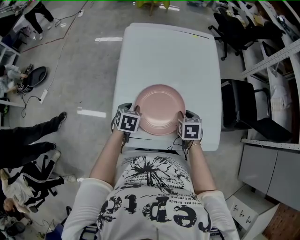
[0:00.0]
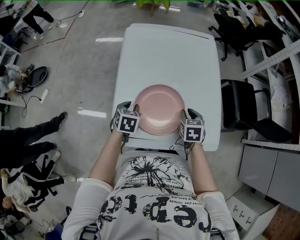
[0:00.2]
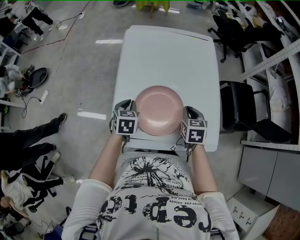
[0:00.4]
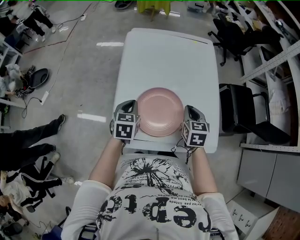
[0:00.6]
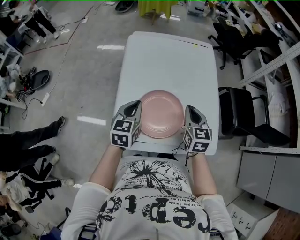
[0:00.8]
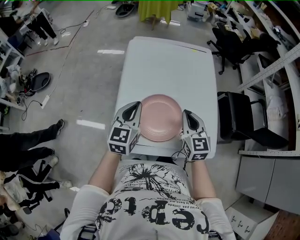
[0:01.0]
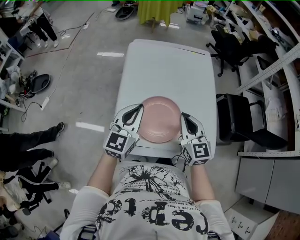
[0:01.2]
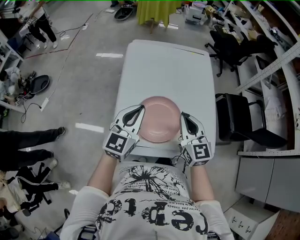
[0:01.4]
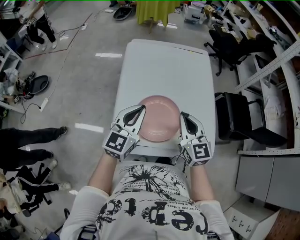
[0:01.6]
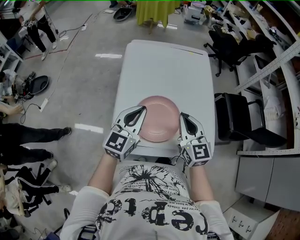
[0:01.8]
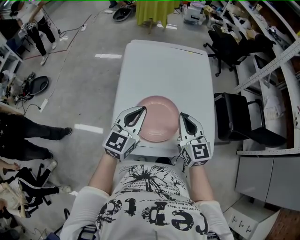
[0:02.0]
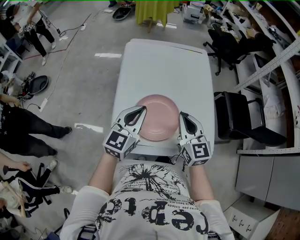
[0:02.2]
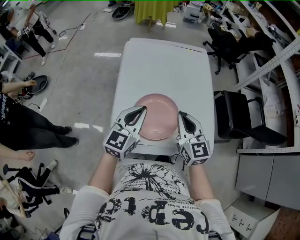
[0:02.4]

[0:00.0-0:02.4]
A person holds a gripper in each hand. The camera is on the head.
0:00.0 to 0:01.2: The grippers both shift upward by approximately 20 cm. The left gripper tips its fingers upward by some 50 degrees, and closes its fingers. Meanwhile the right gripper points its fingers about 40 degrees further upward, and closes.
0:01.2 to 0:02.4: The grippers move only a little.

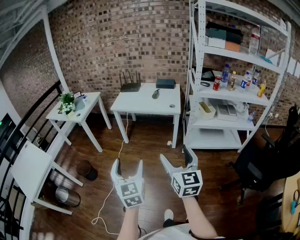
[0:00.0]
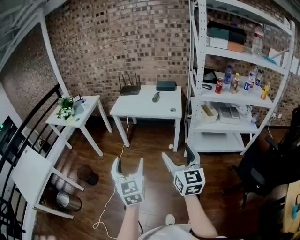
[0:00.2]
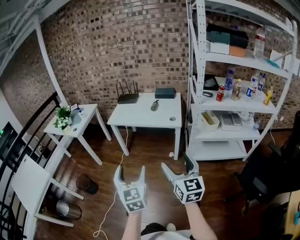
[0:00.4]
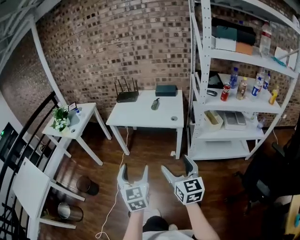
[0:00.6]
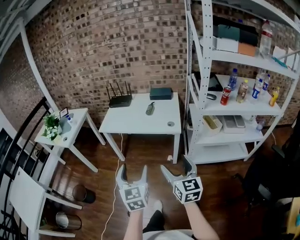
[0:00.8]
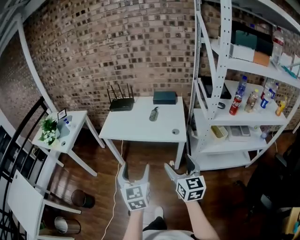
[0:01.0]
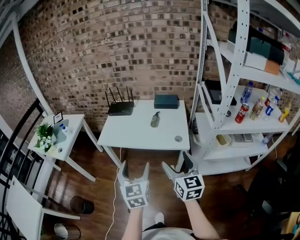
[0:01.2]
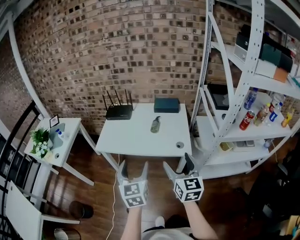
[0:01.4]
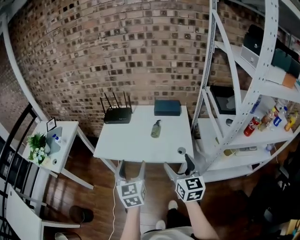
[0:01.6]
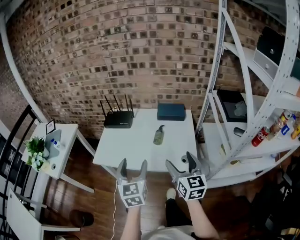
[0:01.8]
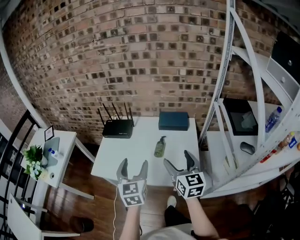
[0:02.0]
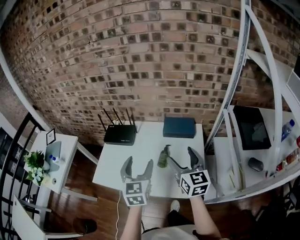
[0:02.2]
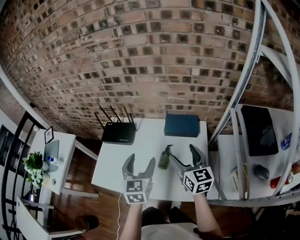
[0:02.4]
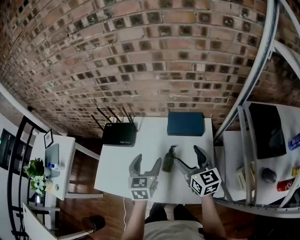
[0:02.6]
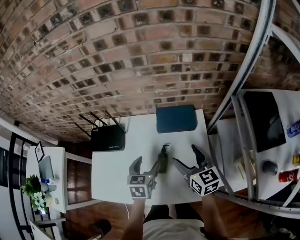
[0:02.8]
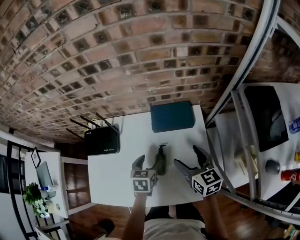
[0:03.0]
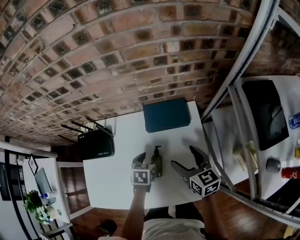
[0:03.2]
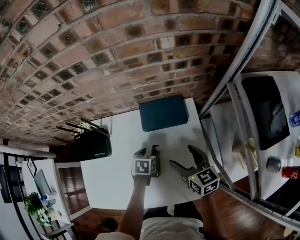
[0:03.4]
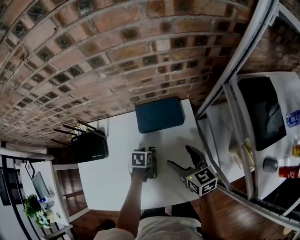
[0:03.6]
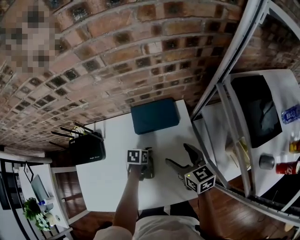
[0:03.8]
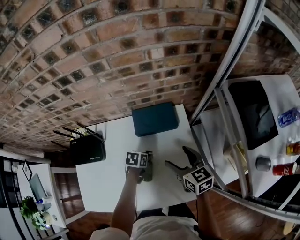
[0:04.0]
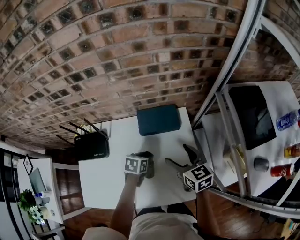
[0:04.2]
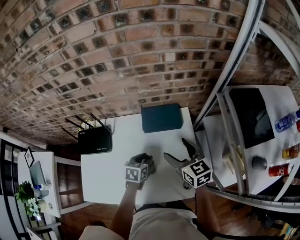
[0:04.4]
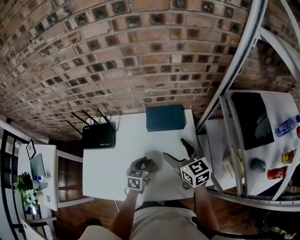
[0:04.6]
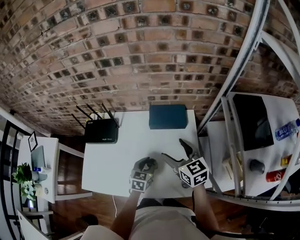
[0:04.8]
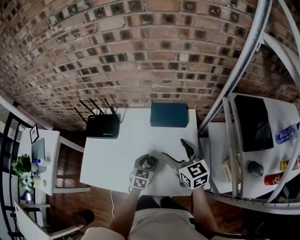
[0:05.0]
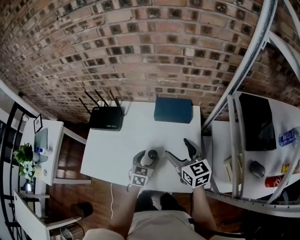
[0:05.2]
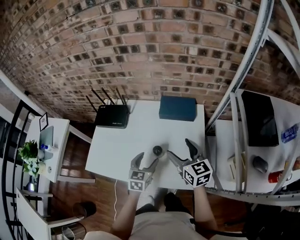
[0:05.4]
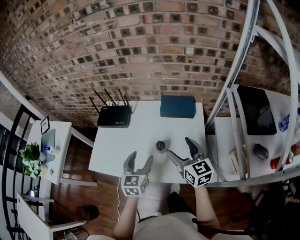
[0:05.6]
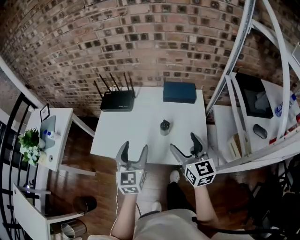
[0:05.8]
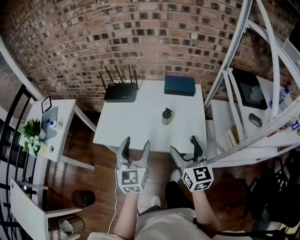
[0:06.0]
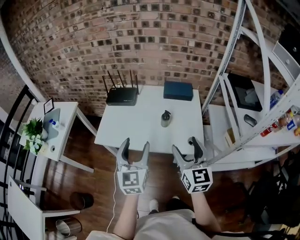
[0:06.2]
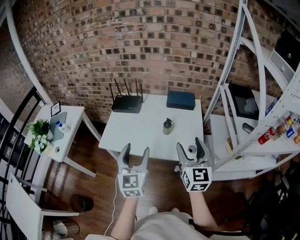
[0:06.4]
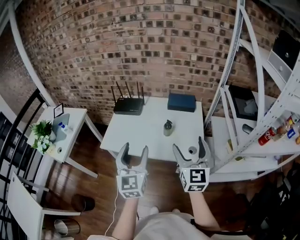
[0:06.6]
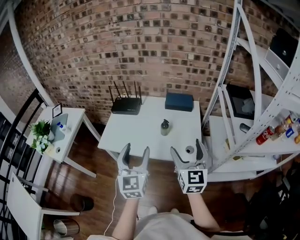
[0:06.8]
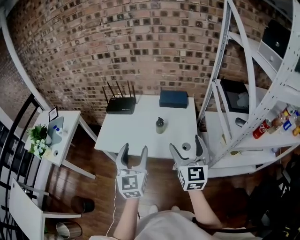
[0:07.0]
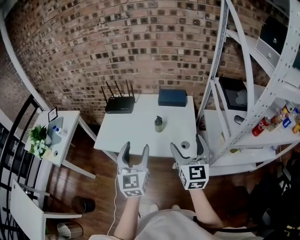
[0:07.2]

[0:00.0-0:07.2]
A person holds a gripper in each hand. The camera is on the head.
0:00.0 to 0:01.4: The pair of grippers is taken forward, about 50 cm.
0:01.4 to 0:02.8: Both grippers are carried forward, about 50 cm. The left gripper turns by approximately 30 degrees.
0:02.8 to 0:04.4: The right gripper goes downward and returns, approximately 10 cm each way; the left gripper shifts approximately 10 cm downward, changes its angle by approximately 20 degrees, and closes up.
0:04.4 to 0:05.8: The right gripper travels backward by about 20 cm; the left gripper shifts about 30 cm backward, upward and to the left, angles its fingers upward, by approximately 30 degrees, and opens.
0:05.8 to 0:07.2: Both grippers move backward and upward, some 15 cm.

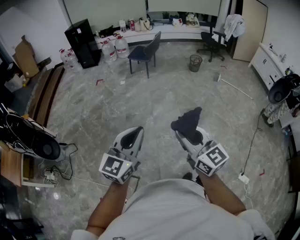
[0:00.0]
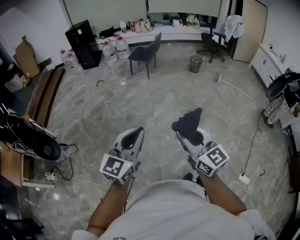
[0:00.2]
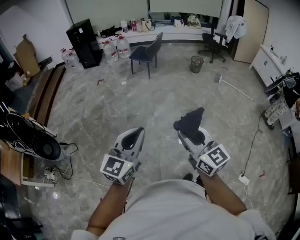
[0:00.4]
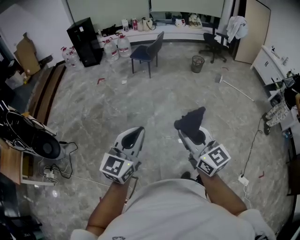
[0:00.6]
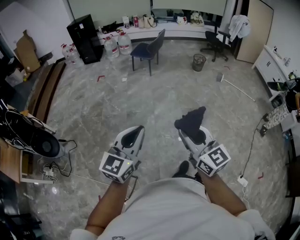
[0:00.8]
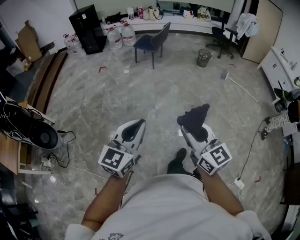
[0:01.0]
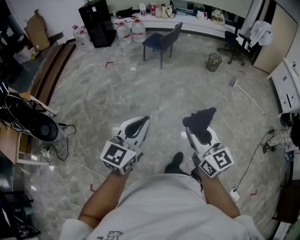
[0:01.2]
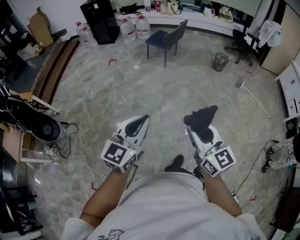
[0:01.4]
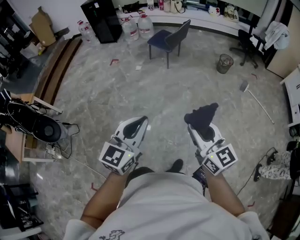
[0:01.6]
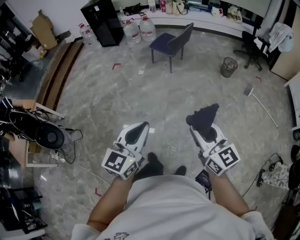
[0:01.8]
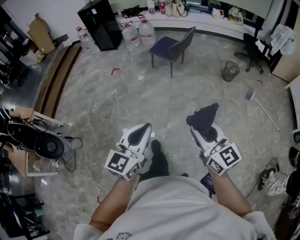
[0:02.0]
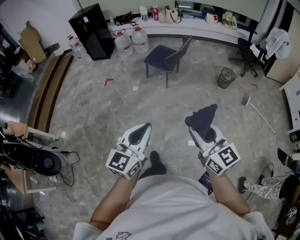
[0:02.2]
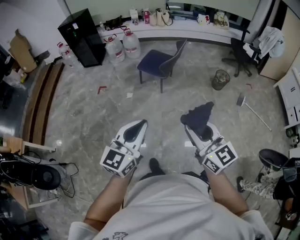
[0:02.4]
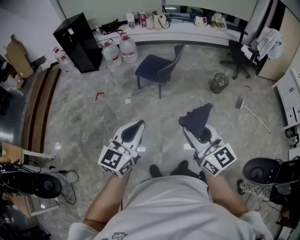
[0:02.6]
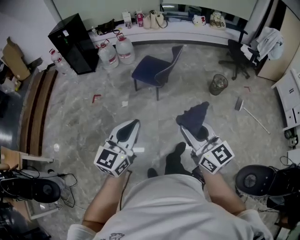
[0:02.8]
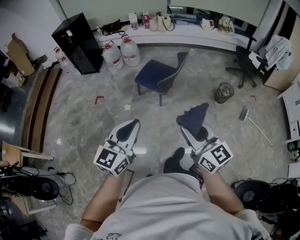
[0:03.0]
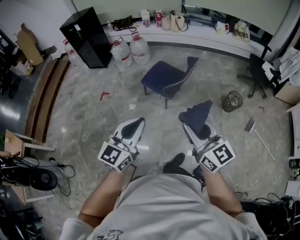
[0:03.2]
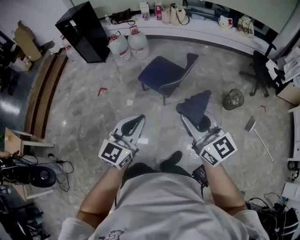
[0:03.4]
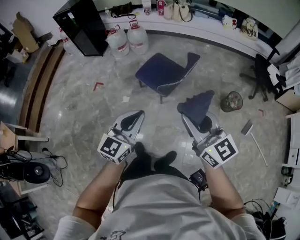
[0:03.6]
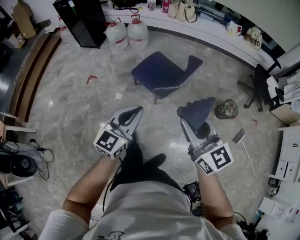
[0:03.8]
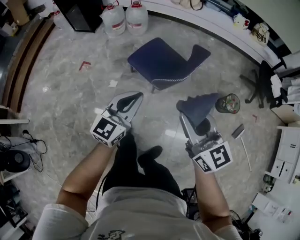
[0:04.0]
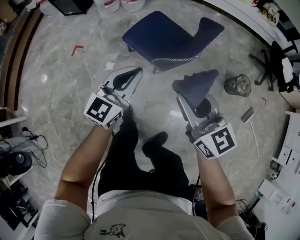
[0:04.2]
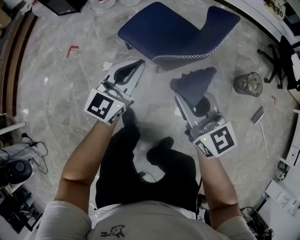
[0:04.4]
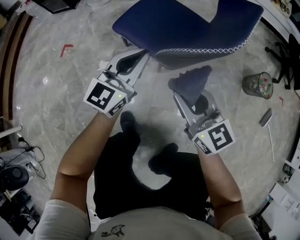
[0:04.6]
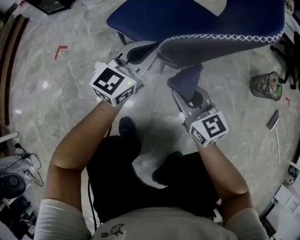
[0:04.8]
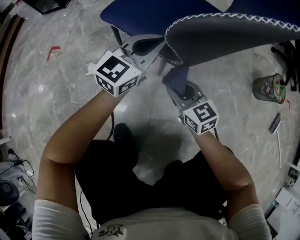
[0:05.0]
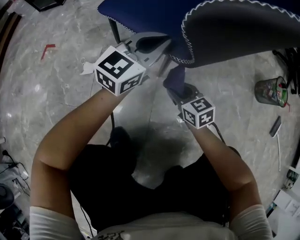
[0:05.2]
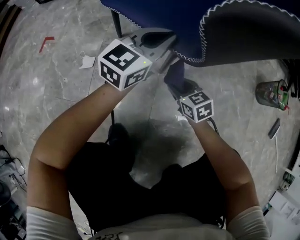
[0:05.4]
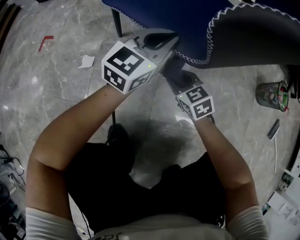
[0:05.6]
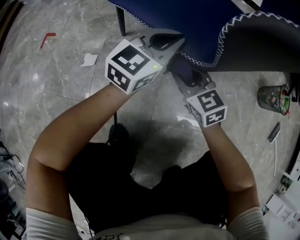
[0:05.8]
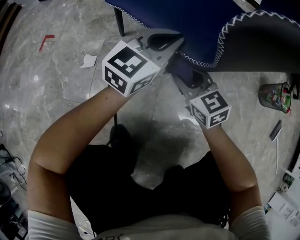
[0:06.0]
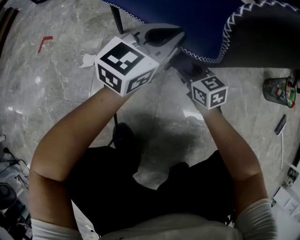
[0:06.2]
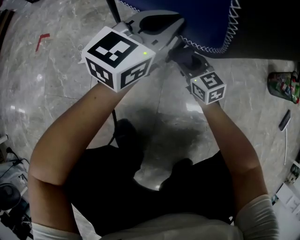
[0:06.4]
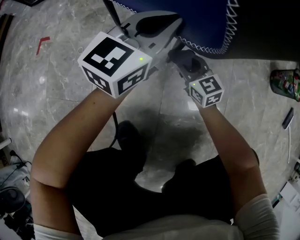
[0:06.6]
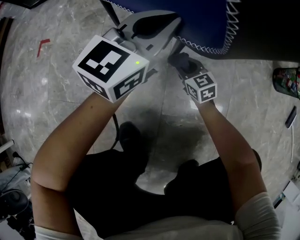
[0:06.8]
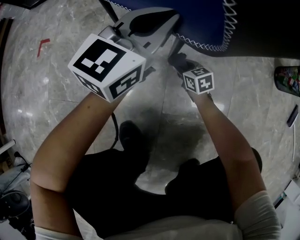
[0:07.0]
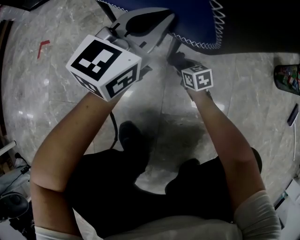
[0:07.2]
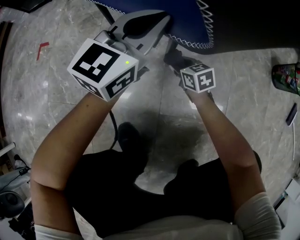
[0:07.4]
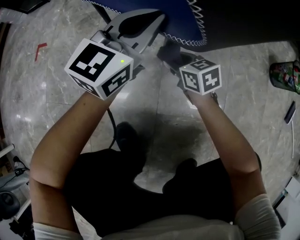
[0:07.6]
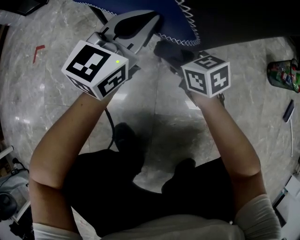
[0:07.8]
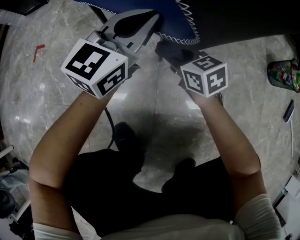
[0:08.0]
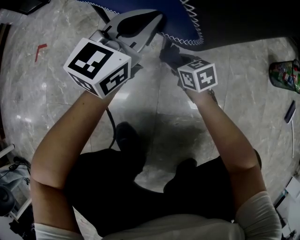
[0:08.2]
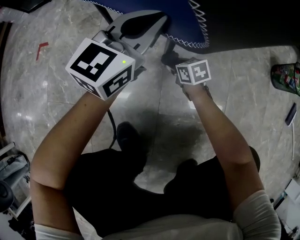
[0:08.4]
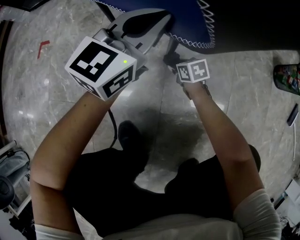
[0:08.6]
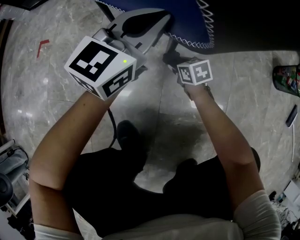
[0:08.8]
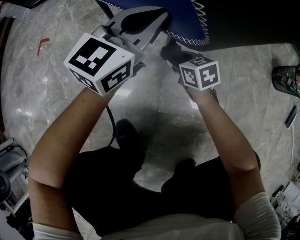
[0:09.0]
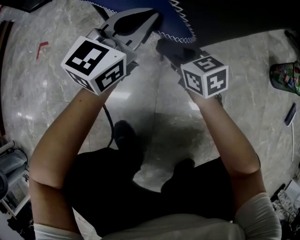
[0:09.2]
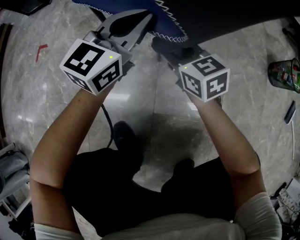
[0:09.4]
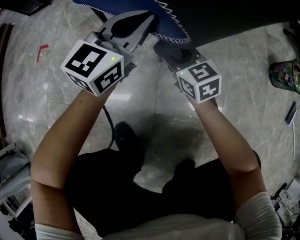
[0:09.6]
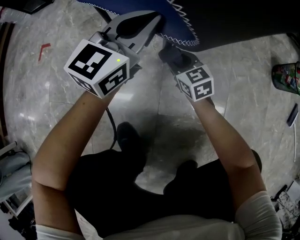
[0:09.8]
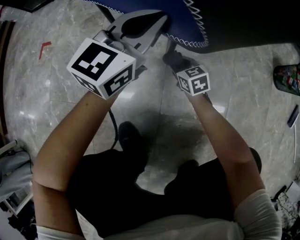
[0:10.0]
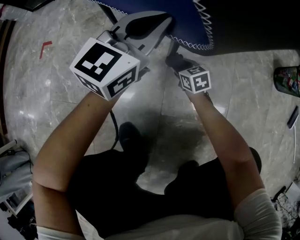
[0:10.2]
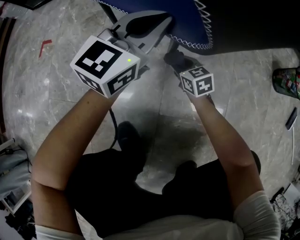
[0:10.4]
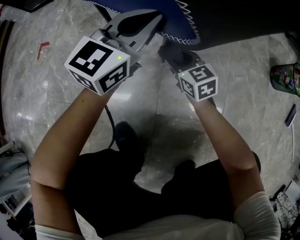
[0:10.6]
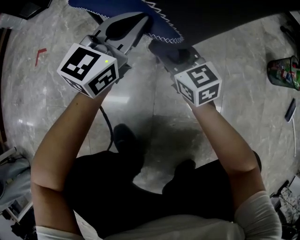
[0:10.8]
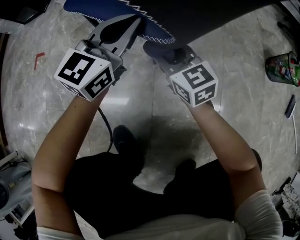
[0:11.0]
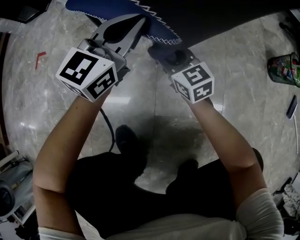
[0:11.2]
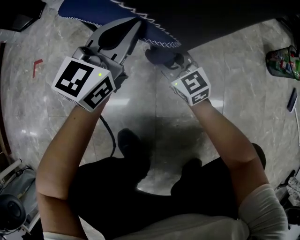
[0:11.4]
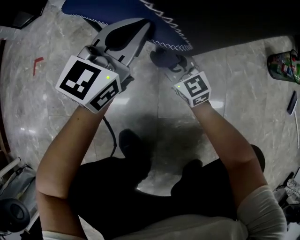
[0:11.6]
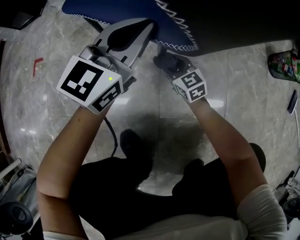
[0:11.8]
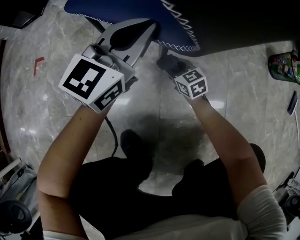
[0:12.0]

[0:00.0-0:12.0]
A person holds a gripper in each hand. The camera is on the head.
0:00.0 to 0:01.6: The two grippers go about 35 cm forward.
0:01.6 to 0:03.0: The two grippers travel together, forward, approximately 60 cm.
0:03.0 to 0:04.4: The two grippers travel together, forward, some 40 cm. Both grippers move downward, some 40 cm.
0:04.4 to 0:06.0: The two grippers go approximately 50 cm downward. The right gripper rotates approximately 20 degrees.
0:06.0 to 0:07.6: The right gripper goes approximately 10 cm downward, and changes its angle by roughly 20 degrees.
0:07.6 to 0:09.0: The right gripper swings up and down, some 20 cm each way, with 2 reversals.
0:09.0 to 0:10.4: The right gripper moves up and down over approximately 20 cm, changing direction 2 times.
0:10.4 to 0:12.0: The right gripper reaches some 15 cm upward, then returns.

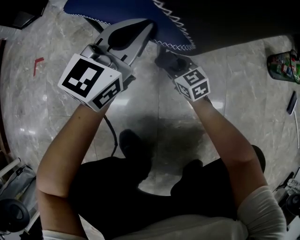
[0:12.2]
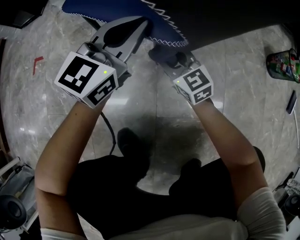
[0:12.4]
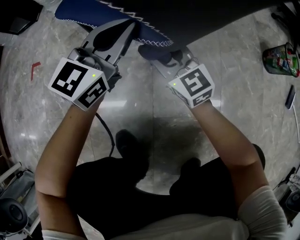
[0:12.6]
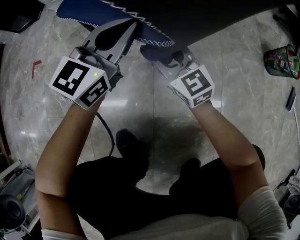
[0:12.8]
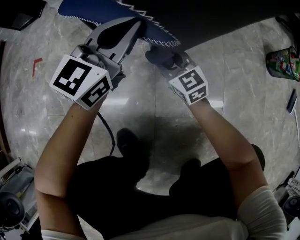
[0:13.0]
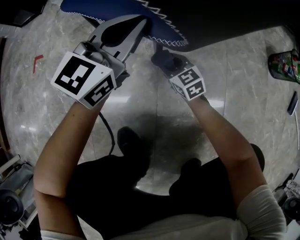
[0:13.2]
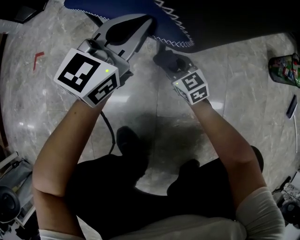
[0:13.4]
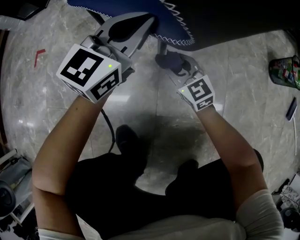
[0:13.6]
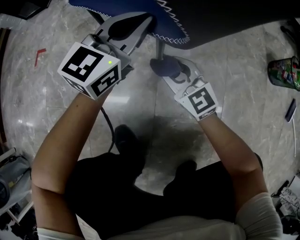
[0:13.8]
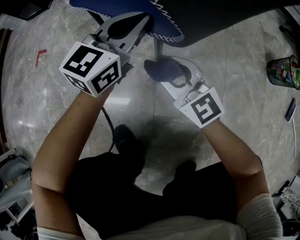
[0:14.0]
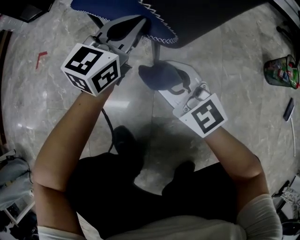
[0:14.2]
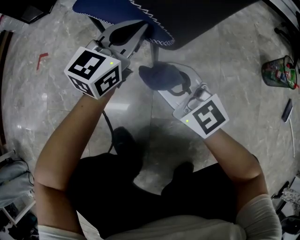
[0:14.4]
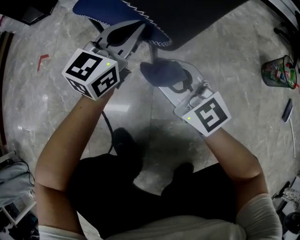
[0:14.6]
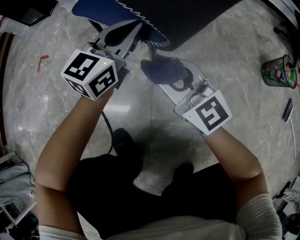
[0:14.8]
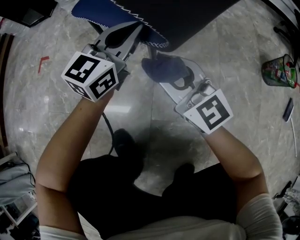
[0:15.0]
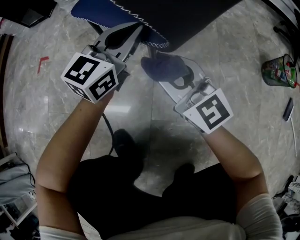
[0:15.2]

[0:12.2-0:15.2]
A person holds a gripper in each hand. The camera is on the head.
0:12.2 to 0:13.8: The right gripper swings up and down, approximately 15 cm each way, with 2 reversals, and changes its angle by approximately 20 degrees.
0:13.8 to 0:15.2: The right gripper goes roughly 15 cm upward.
